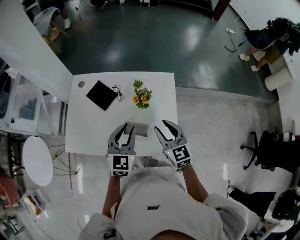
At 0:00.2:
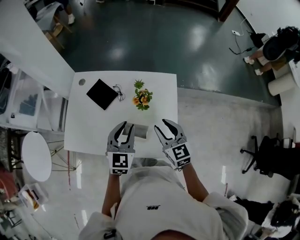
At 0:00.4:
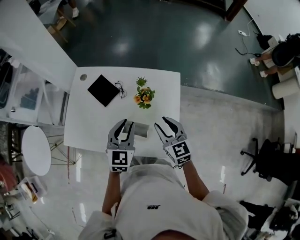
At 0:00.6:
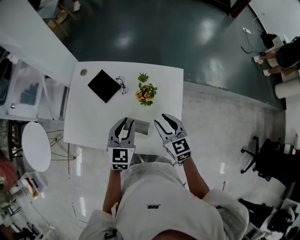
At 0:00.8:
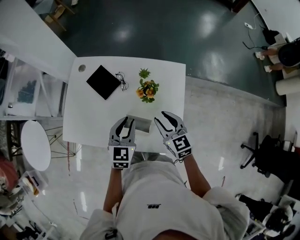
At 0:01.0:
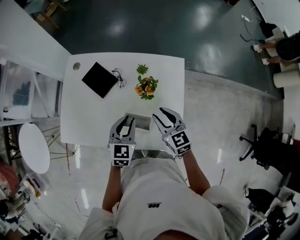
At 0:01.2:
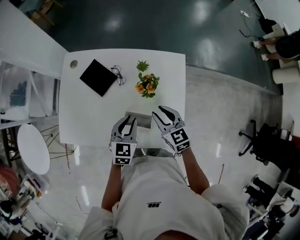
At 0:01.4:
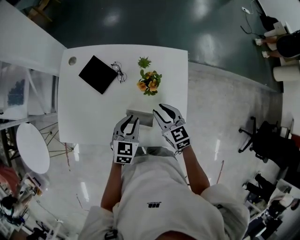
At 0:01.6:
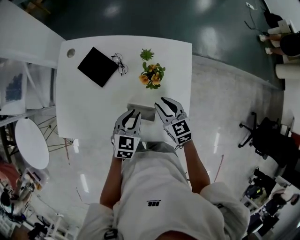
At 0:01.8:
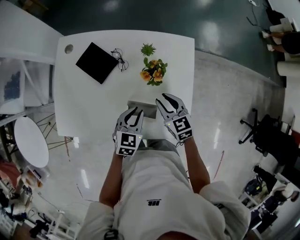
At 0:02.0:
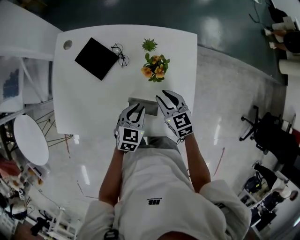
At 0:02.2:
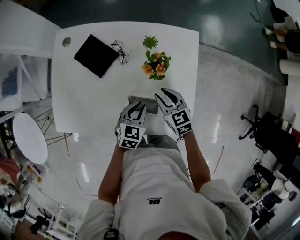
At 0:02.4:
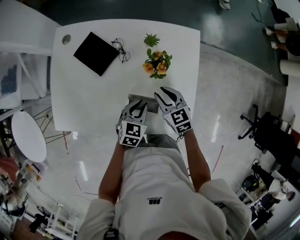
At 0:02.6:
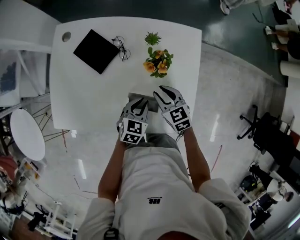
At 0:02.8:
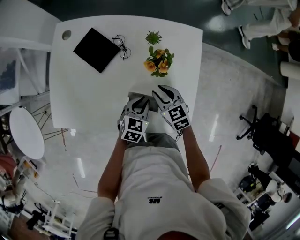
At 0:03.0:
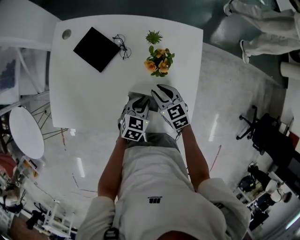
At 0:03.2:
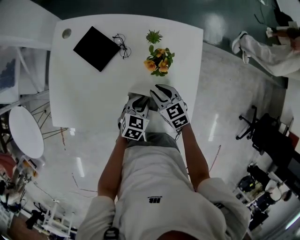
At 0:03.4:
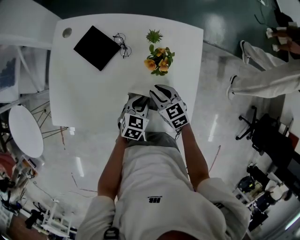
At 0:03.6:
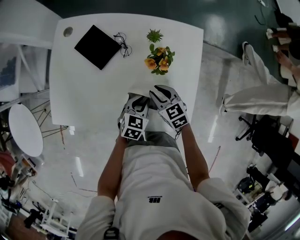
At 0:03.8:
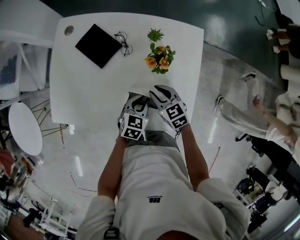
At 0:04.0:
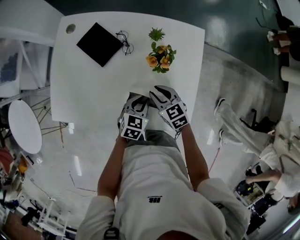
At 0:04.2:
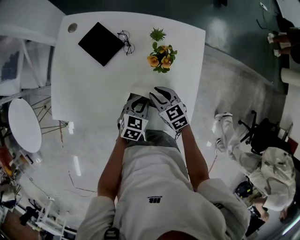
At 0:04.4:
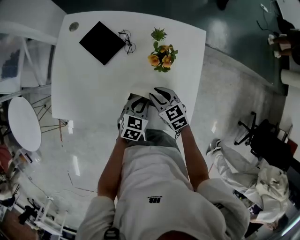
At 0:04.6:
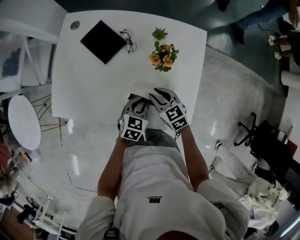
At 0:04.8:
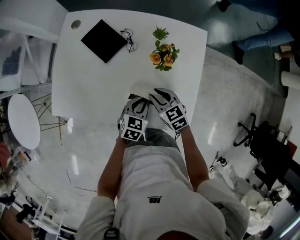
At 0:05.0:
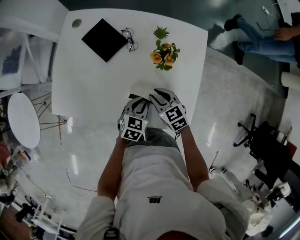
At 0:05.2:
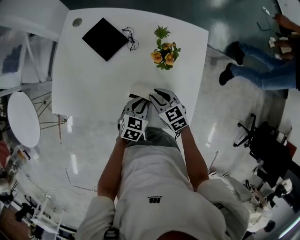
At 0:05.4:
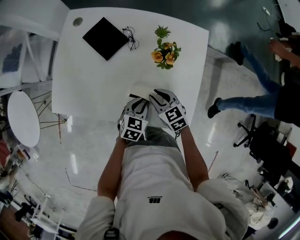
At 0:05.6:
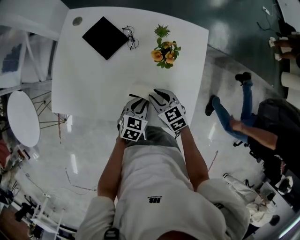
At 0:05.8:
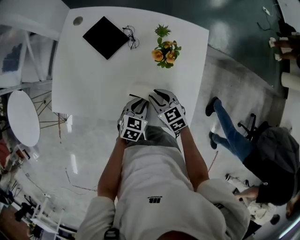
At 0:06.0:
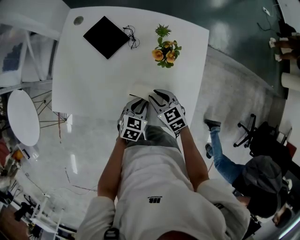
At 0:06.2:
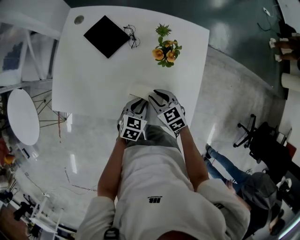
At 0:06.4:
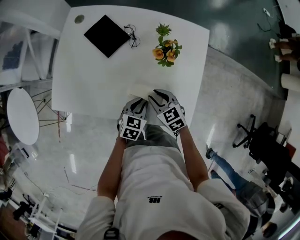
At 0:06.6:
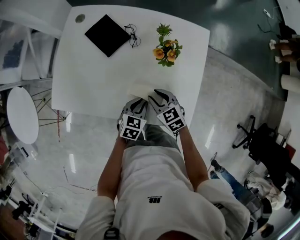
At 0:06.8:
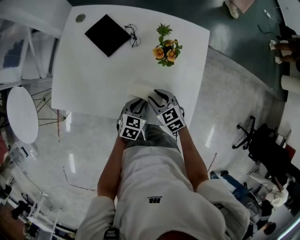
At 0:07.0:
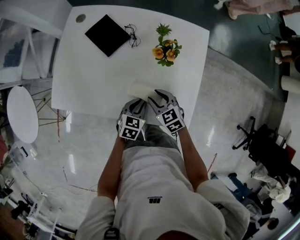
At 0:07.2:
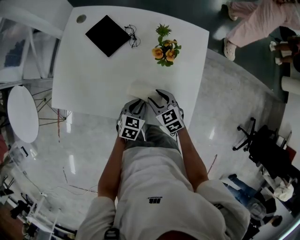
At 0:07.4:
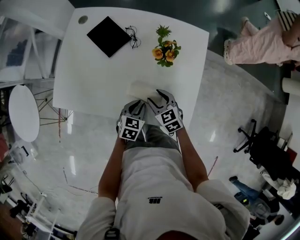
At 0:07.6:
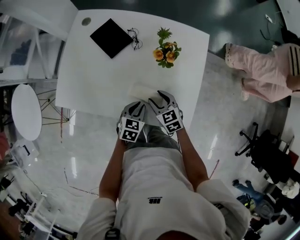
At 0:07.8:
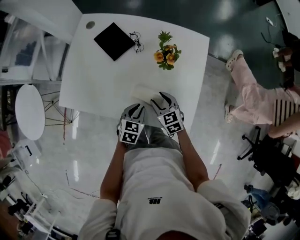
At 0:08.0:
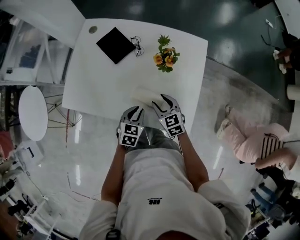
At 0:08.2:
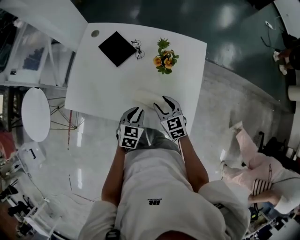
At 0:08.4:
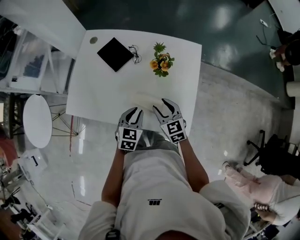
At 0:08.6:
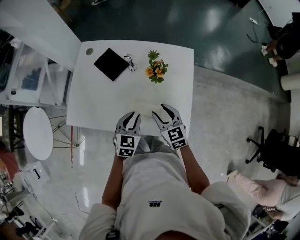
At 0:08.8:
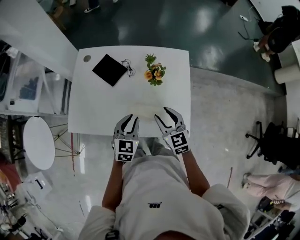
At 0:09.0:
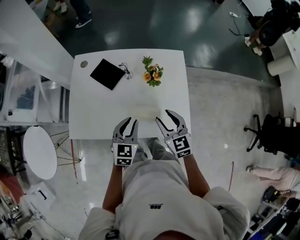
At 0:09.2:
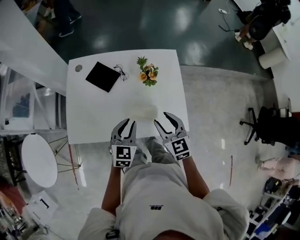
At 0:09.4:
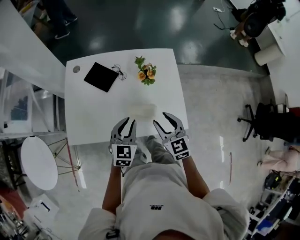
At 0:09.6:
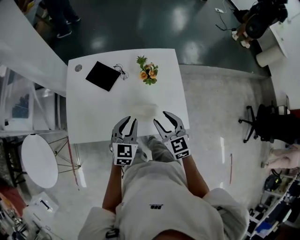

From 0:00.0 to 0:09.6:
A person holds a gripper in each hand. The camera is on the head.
From 0:00.0 to 0:01.6: The left gripper goes approximately 20 cm downward, and changes its angle by some 20 degrees, while the right gripper heads downward and forward, covering some 20 cm.
From 0:01.6 to 0:03.2: Both grippers move downward, roughly 10 cm.
From 0:03.2 to 0:04.8: The right gripper shifts by some 5 cm.
From 0:04.8 to 0:06.4: The grippers stay close to where they were, moving slightly.
From 0:06.4 to 0:08.0: The right gripper opens.
From 0:08.0 to 0:09.6: Both grippers travel together upward, about 15 cm. The right gripper rotates approximately 20 degrees. The left gripper turns by roughly 30 degrees.

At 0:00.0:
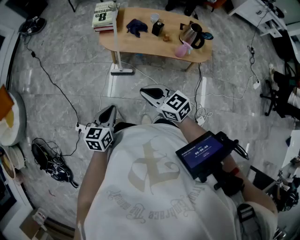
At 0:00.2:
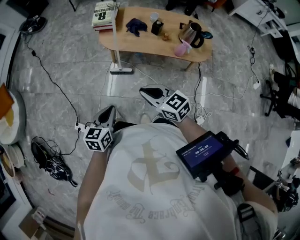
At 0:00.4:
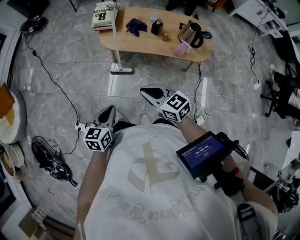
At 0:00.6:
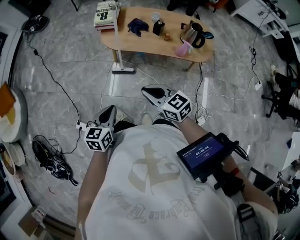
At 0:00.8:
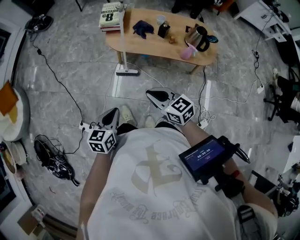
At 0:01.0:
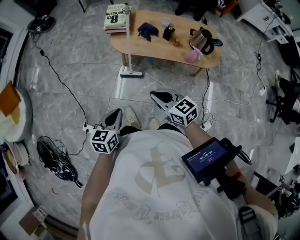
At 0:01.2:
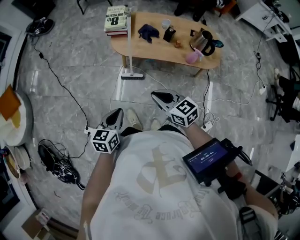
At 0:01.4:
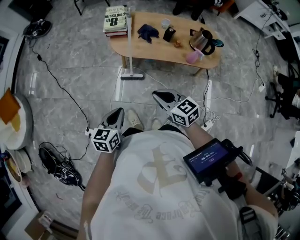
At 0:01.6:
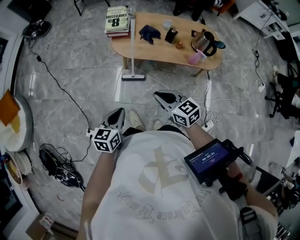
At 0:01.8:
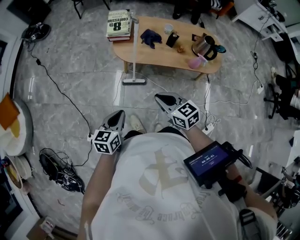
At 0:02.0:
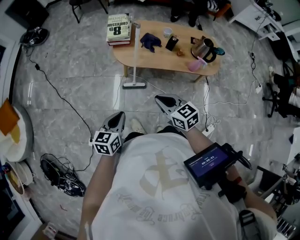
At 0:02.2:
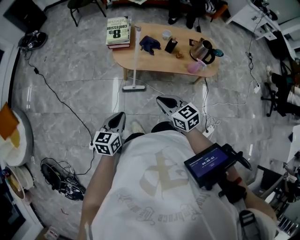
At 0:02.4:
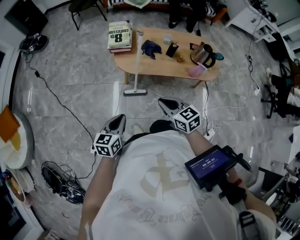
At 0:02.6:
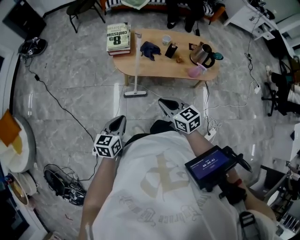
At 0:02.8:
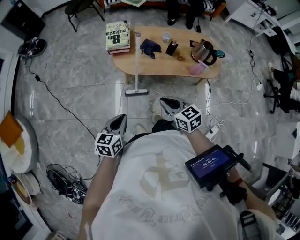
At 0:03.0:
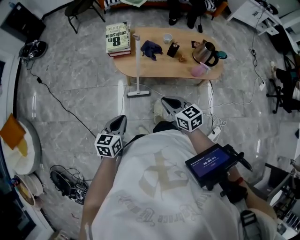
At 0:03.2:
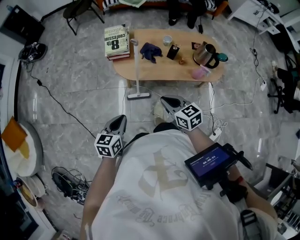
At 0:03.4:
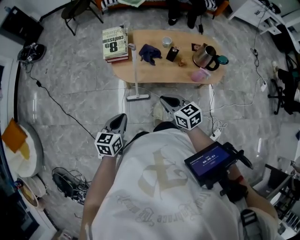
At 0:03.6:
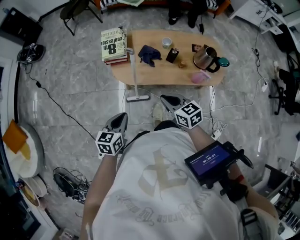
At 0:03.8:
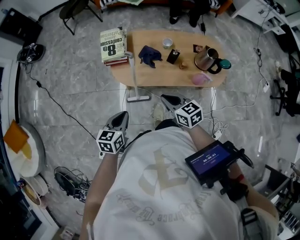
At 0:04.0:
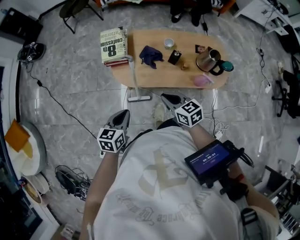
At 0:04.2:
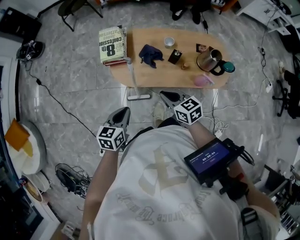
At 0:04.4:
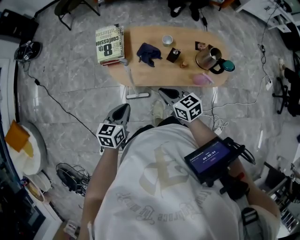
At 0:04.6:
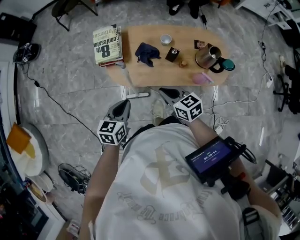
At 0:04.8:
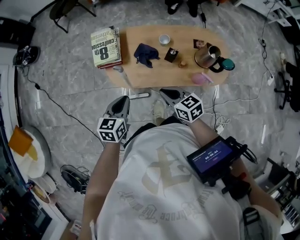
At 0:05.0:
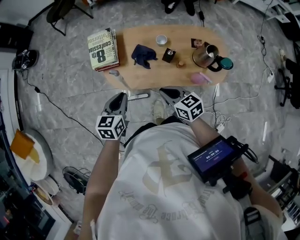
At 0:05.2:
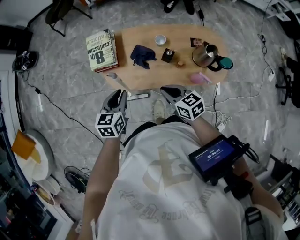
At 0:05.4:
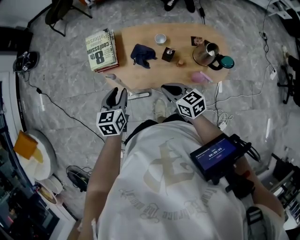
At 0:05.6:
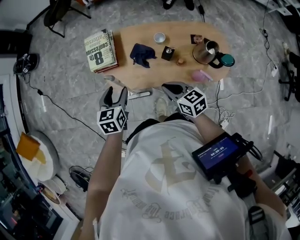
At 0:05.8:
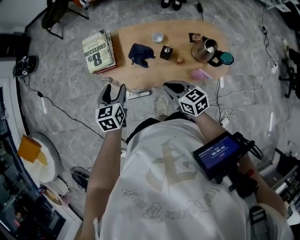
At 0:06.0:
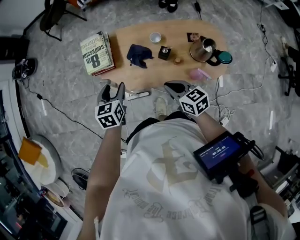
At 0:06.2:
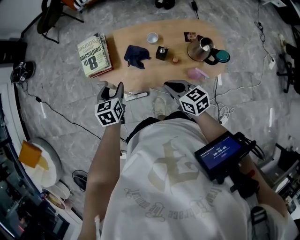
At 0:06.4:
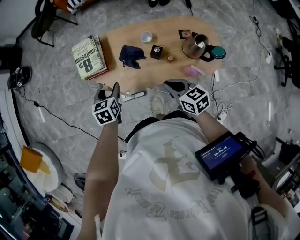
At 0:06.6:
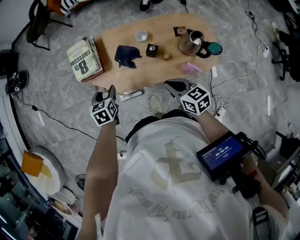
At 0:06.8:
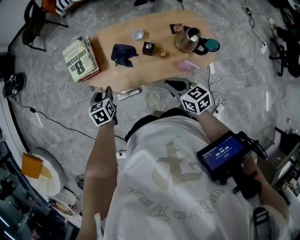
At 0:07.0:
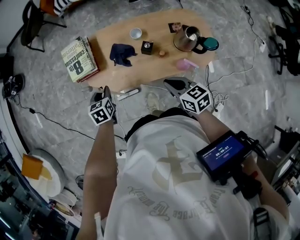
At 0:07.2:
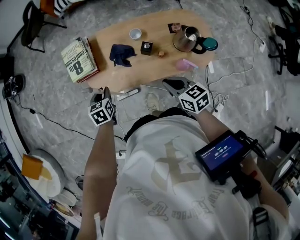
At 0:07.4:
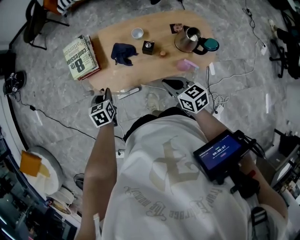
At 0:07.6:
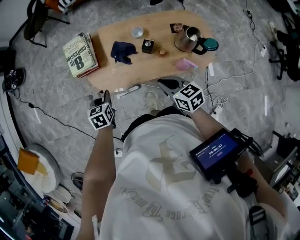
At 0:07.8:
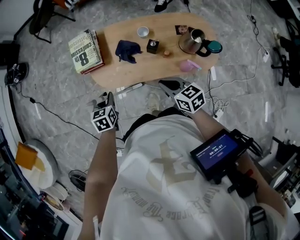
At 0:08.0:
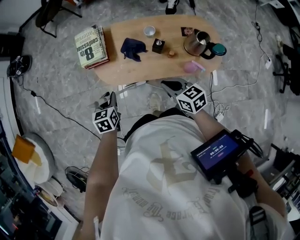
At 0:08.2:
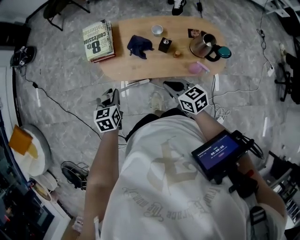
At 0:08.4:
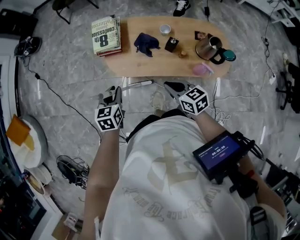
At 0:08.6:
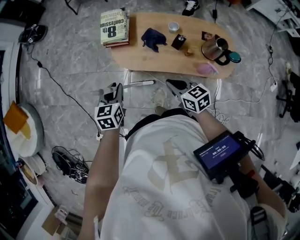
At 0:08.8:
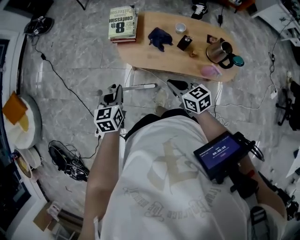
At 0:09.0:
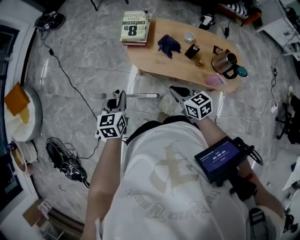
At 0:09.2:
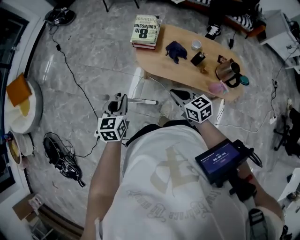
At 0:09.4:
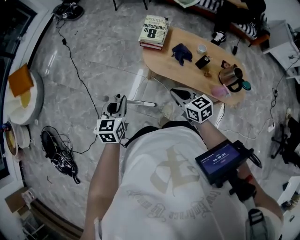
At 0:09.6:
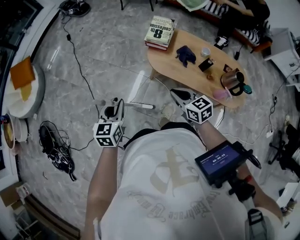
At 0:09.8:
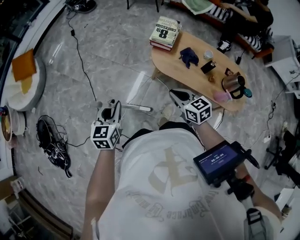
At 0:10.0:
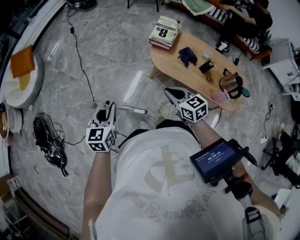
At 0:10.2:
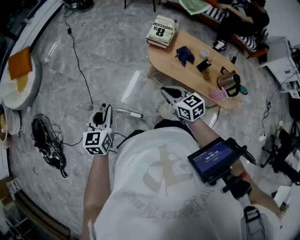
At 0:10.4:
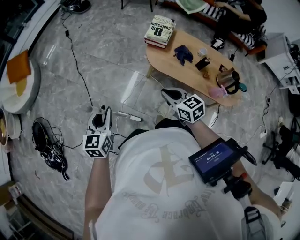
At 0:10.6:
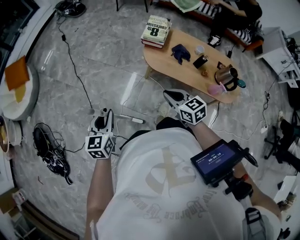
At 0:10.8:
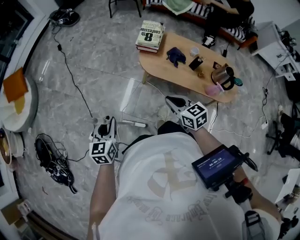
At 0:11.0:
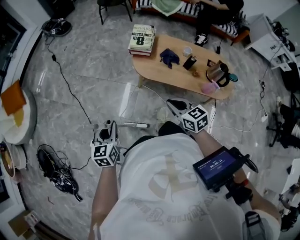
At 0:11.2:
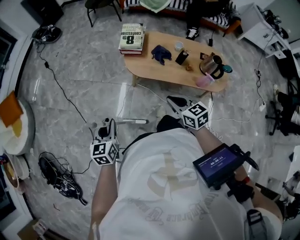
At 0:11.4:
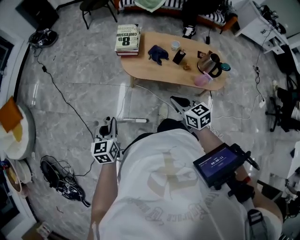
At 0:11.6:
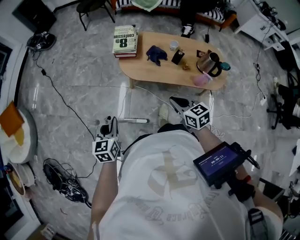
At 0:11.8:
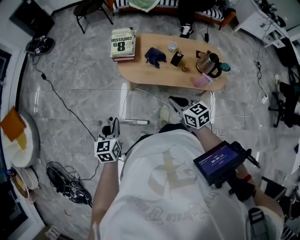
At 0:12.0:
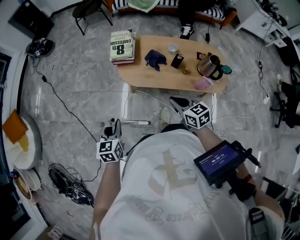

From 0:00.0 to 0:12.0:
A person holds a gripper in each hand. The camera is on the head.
From 0:00.0 to 0:01.6: The right gripper moves roughly 5 cm, while the left gripper heads forward and to the left, covering approximately 10 cm.
From 0:01.6 to 0:03.0: Both grippers move forward, some 10 cm.
From 0:03.0 to 0:04.4: The right gripper is displaced forward by roughly 15 cm, while the left gripper is displaced forward and to the right by some 20 cm.
From 0:04.4 to 0:06.0: The right gripper shifts about 10 cm to the right. Meanwhile the left gripper moves forward and to the right, about 15 cm, and opens its fingers.
From 0:06.0 to 0:07.6: The left gripper travels downward by roughly 5 cm, and closes its fingers.
From 0:07.6 to 0:09.0: The left gripper is displaced to the left, backward and upward by approximately 25 cm, and turns by some 20 degrees. The right gripper is displaced to the left by about 15 cm, and changes its angle by some 20 degrees.
From 0:09.0 to 0:10.4: The right gripper goes about 15 cm to the left; the left gripper heads to the left and backward, covering approximately 20 cm.
From 0:10.4 to 0:12.0: The left gripper shifts some 20 cm to the right, forward and downward, while the right gripper shifts some 15 cm to the right, and turns by about 20 degrees.

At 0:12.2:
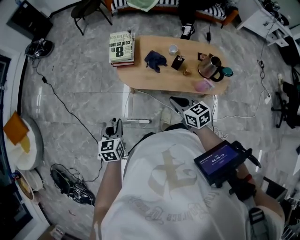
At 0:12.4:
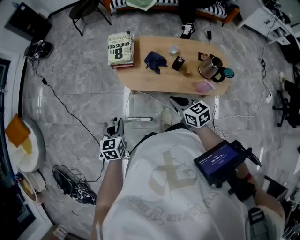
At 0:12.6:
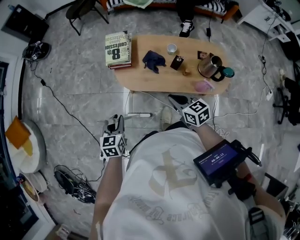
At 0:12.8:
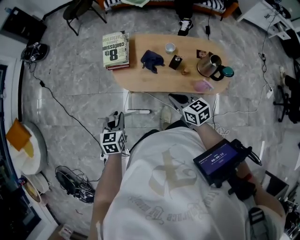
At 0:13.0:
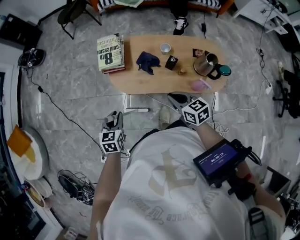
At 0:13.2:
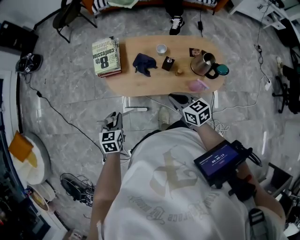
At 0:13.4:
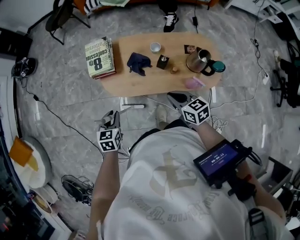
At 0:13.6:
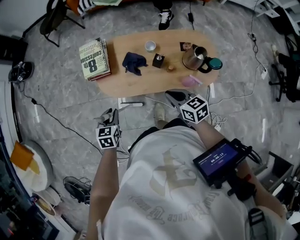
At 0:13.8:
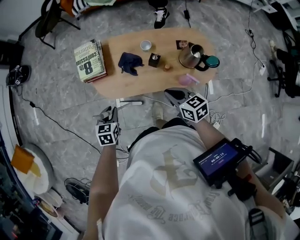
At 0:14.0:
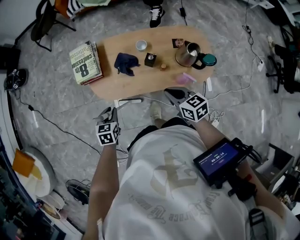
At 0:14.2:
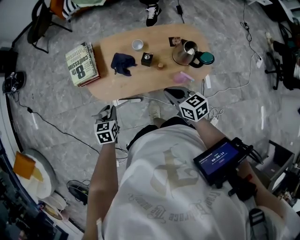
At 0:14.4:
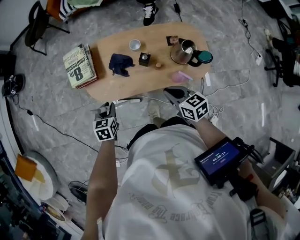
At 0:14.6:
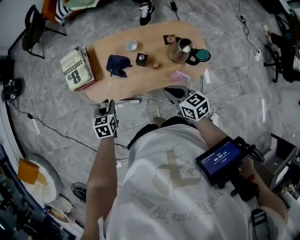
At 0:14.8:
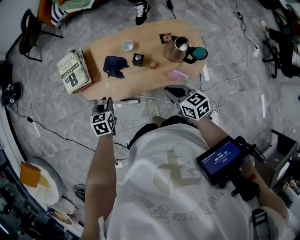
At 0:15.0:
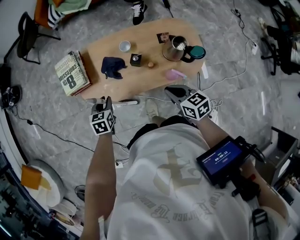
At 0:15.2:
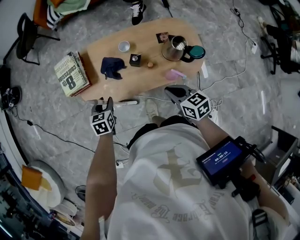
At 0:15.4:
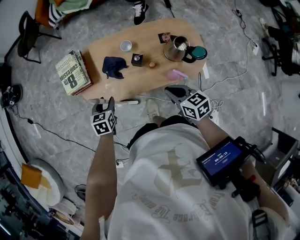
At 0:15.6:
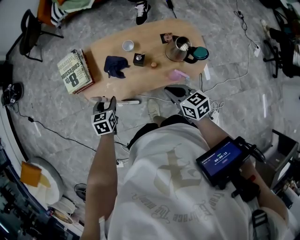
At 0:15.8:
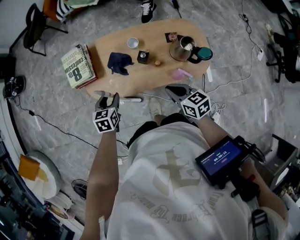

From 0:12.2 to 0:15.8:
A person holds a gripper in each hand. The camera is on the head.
From 0:12.2 to 0:14.0: The right gripper heads to the right and forward, covering approximately 15 cm, while the left gripper moves to the right, forward and downward, roughly 25 cm, and changes its angle by about 20 degrees.
From 0:14.0 to 0:15.8: The left gripper travels to the right and forward by about 10 cm, and opens.
